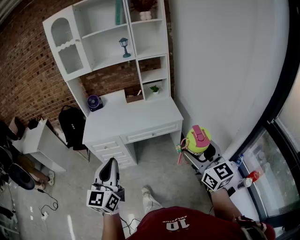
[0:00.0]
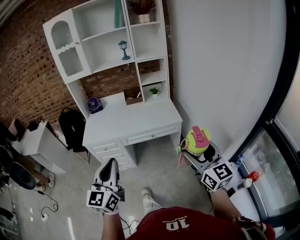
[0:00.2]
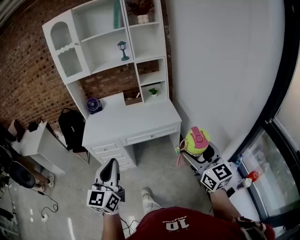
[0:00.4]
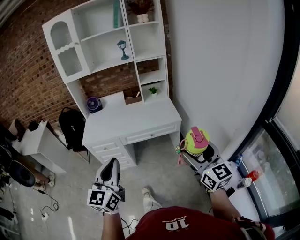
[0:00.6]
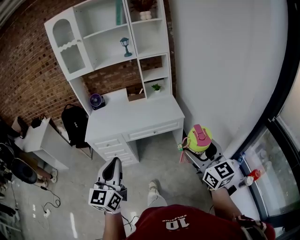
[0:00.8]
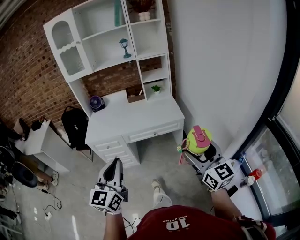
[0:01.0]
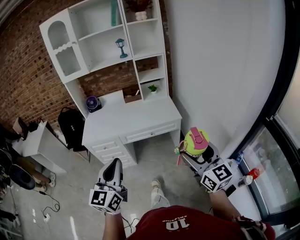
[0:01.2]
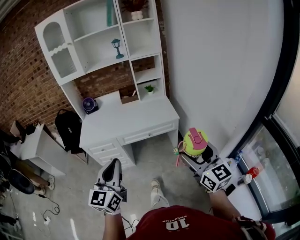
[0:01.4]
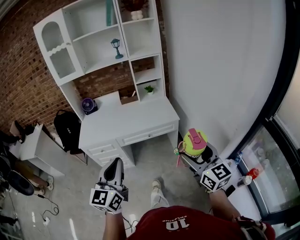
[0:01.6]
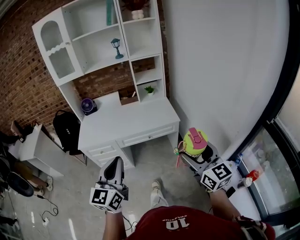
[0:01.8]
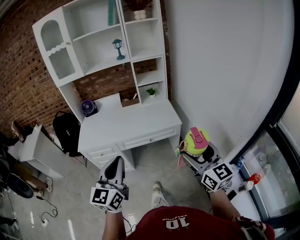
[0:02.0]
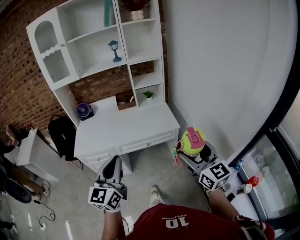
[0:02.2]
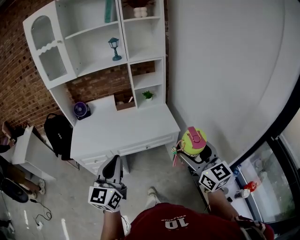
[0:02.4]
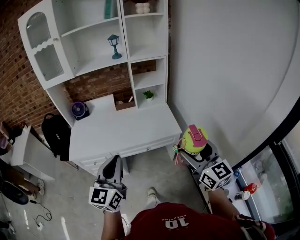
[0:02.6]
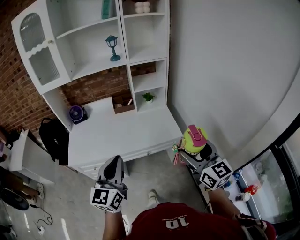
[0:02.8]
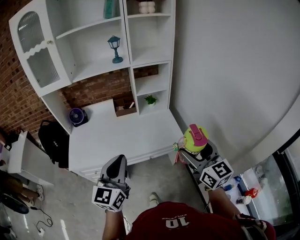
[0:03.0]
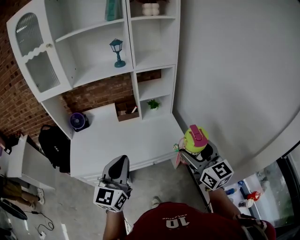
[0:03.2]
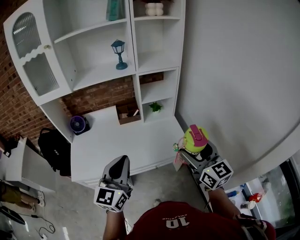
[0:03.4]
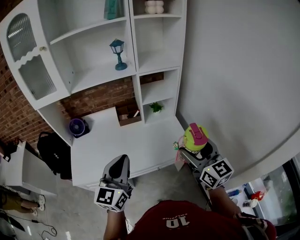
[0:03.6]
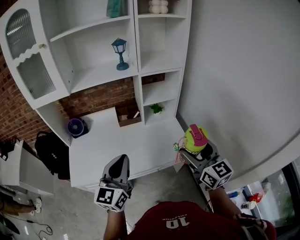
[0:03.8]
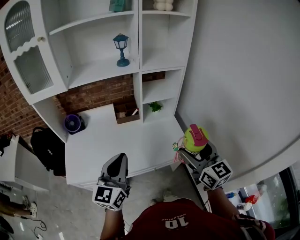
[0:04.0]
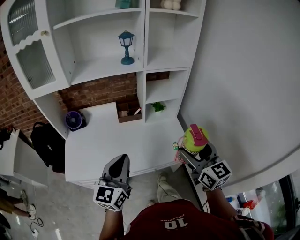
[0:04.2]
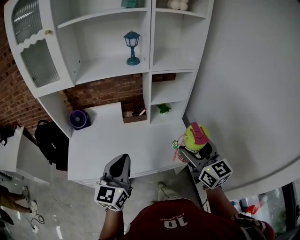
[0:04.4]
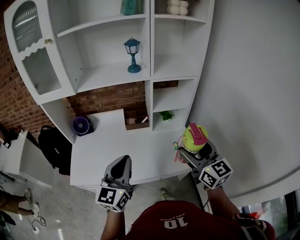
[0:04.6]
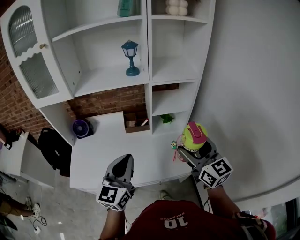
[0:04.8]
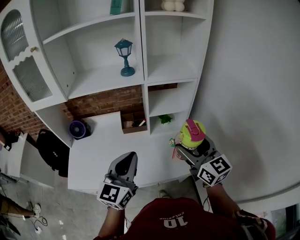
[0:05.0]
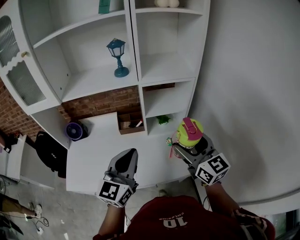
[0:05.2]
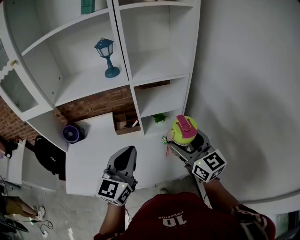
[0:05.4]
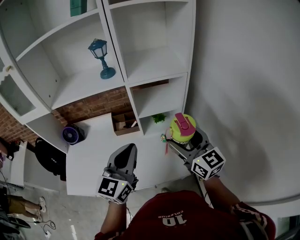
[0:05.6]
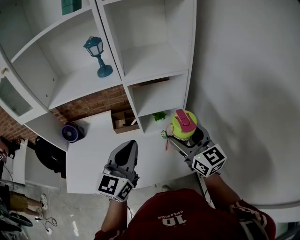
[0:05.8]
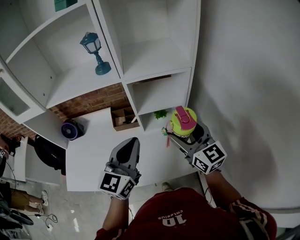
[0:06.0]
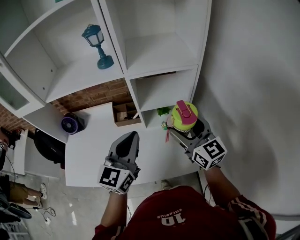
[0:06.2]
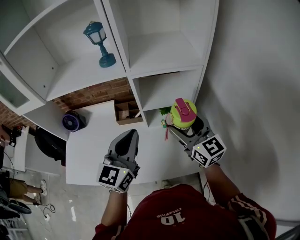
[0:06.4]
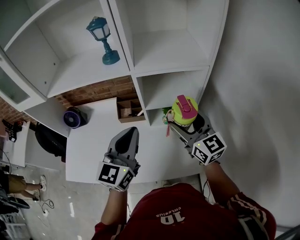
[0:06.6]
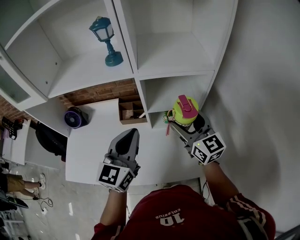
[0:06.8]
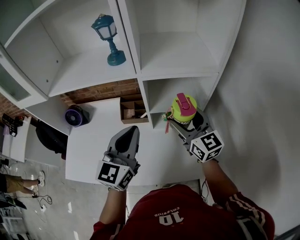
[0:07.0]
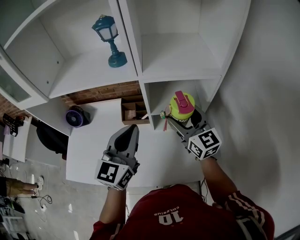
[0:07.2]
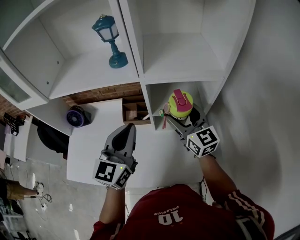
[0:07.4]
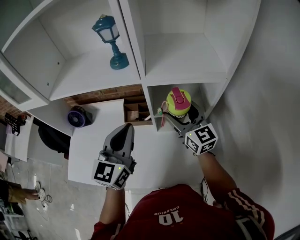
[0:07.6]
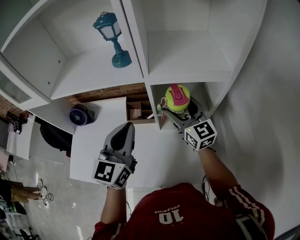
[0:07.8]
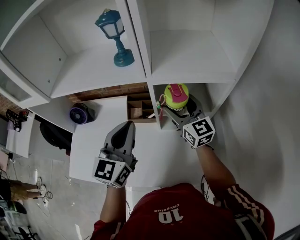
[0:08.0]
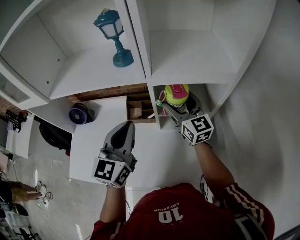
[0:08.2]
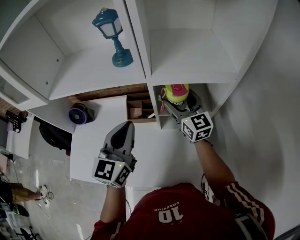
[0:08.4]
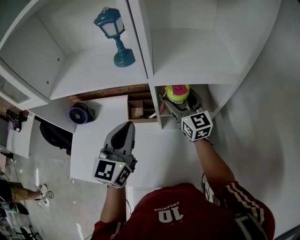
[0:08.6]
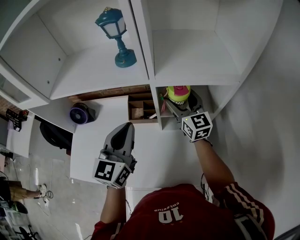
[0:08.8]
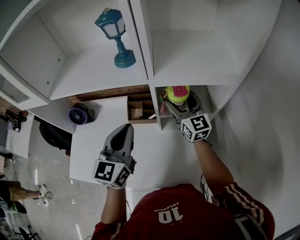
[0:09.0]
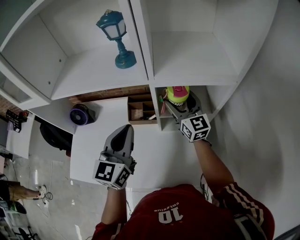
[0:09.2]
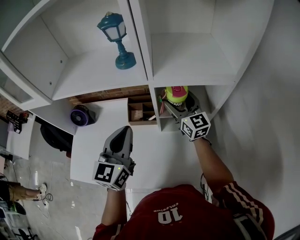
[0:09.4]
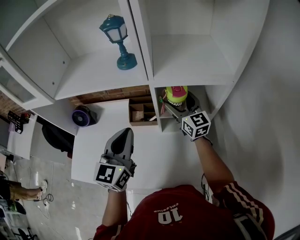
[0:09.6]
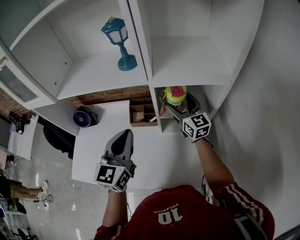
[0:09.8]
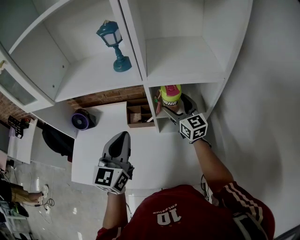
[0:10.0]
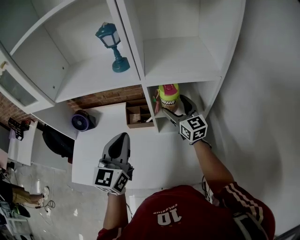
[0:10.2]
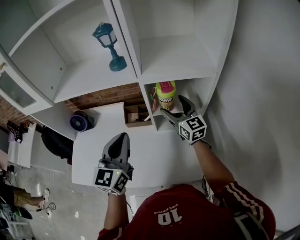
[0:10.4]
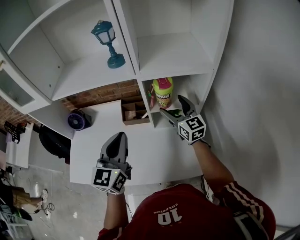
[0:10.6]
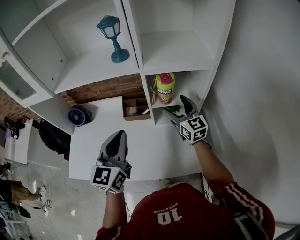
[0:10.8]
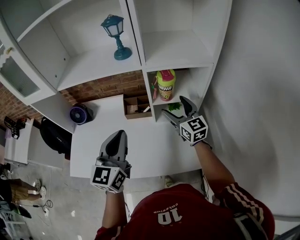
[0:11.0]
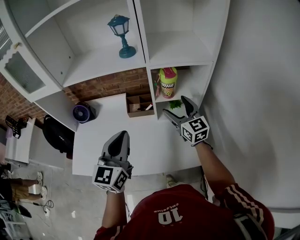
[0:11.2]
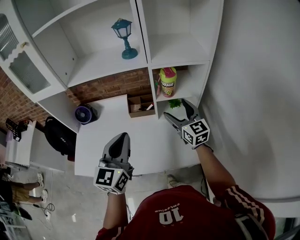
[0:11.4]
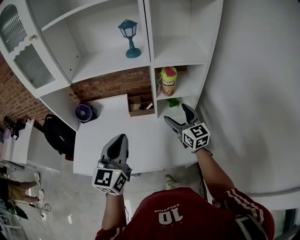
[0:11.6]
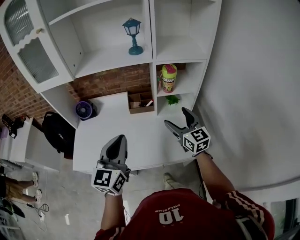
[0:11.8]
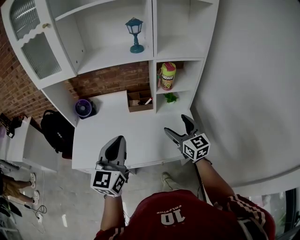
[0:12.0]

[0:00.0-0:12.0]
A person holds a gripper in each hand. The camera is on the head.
0:00.0 to 0:01.6: The left gripper ends up approximately 5 cm from where it was.
0:01.6 to 0:03.0: Both grippers travel together forward, about 30 cm.
0:03.0 to 0:04.4: The grippers both shift forward and to the left by about 20 cm.
0:04.4 to 0:06.0: The left gripper is displaced forward and to the right by approximately 25 cm. Meanwhile the right gripper travels forward by some 20 cm.
0:06.0 to 0:07.6: The right gripper is displaced forward by approximately 15 cm; the left gripper is displaced forward and to the left by some 10 cm.
0:07.6 to 0:09.0: The right gripper is displaced forward by about 5 cm.
0:09.0 to 0:10.4: The left gripper goes about 5 cm backward. Meanwhile the right gripper ends up approximately 5 cm from where it was.
0:10.4 to 0:12.0: The right gripper is displaced backward by some 30 cm. Meanwhile the left gripper moves backward and to the left, about 25 cm.

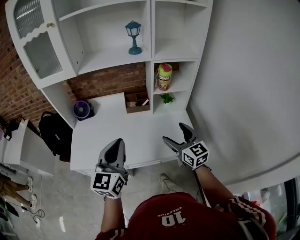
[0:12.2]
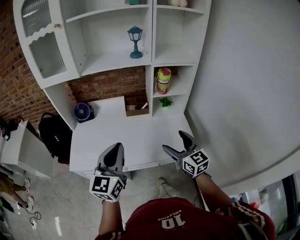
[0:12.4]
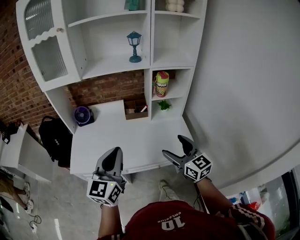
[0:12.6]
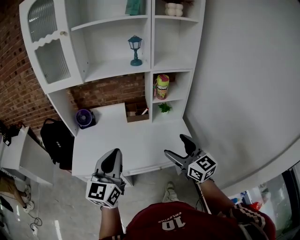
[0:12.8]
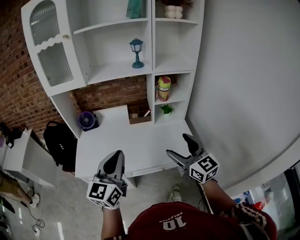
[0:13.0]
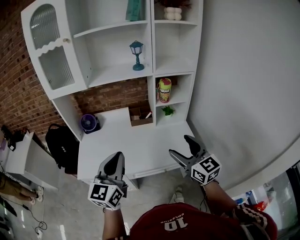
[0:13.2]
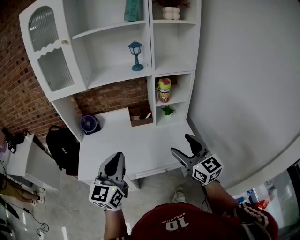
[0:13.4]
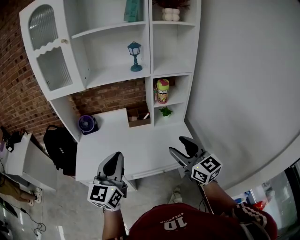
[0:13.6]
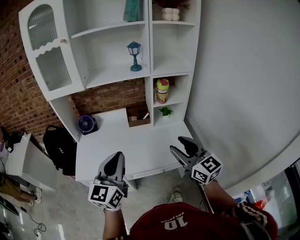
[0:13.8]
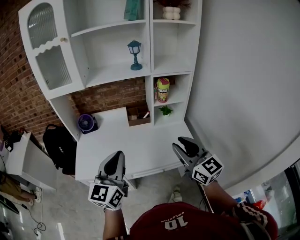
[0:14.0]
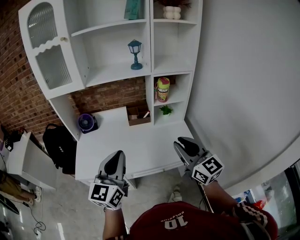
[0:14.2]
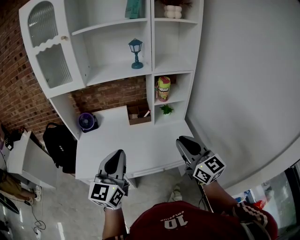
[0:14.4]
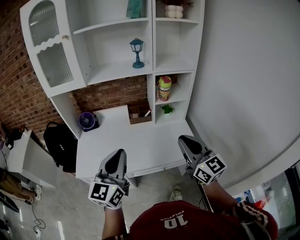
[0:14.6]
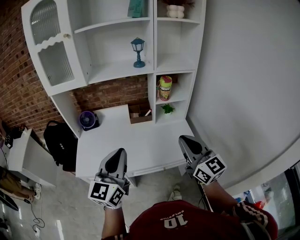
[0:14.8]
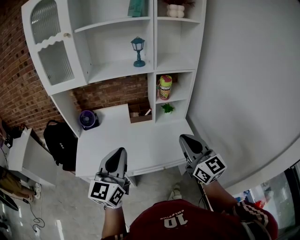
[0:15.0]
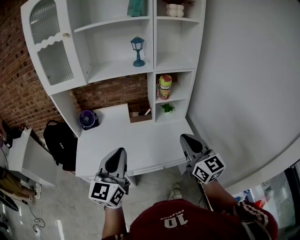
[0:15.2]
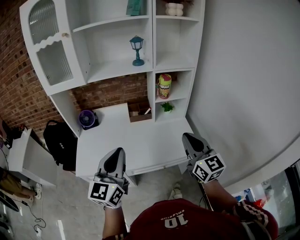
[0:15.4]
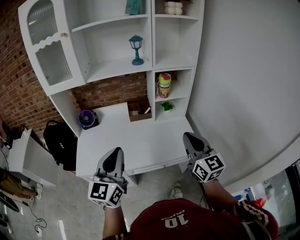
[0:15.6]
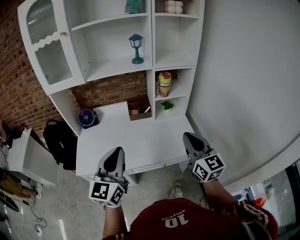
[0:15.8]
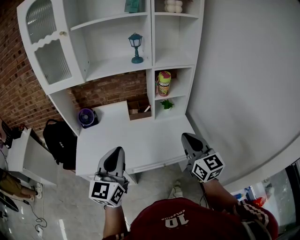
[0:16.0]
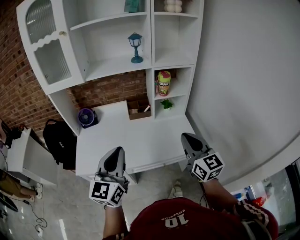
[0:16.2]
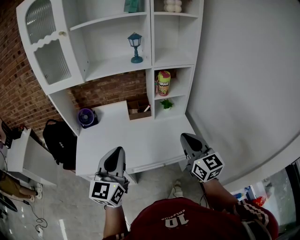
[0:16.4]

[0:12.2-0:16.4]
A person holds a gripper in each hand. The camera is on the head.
0:12.2 to 0:13.6: The right gripper moves backward and upward, approximately 15 cm, and closes its fingers; the left gripper moves backward, roughly 5 cm.
0:13.6 to 0:15.0: The right gripper closes its fingers.
0:15.0 to 0:16.4: There are only small adjustments of the grippers.

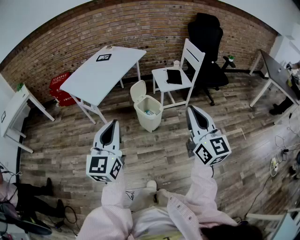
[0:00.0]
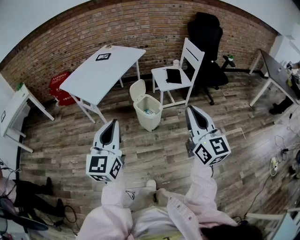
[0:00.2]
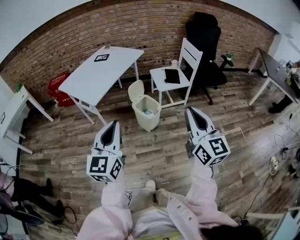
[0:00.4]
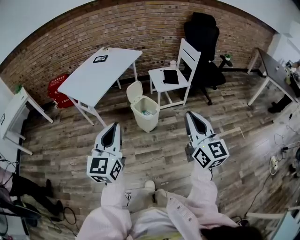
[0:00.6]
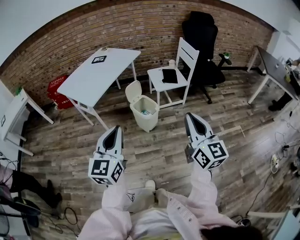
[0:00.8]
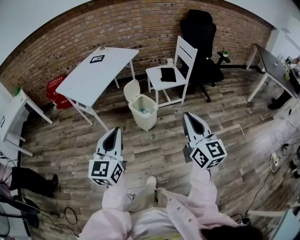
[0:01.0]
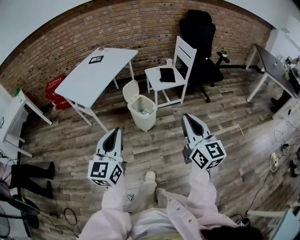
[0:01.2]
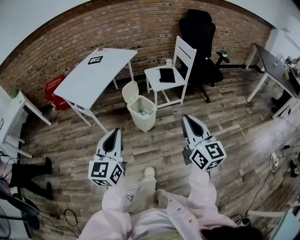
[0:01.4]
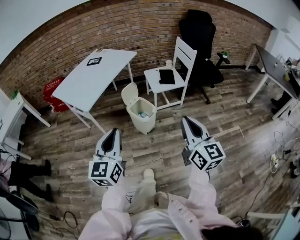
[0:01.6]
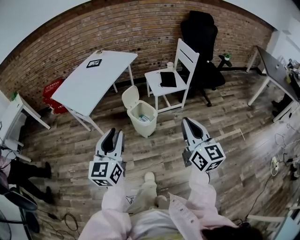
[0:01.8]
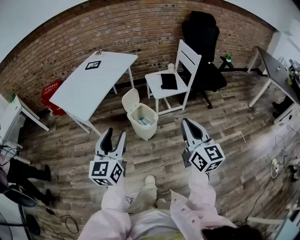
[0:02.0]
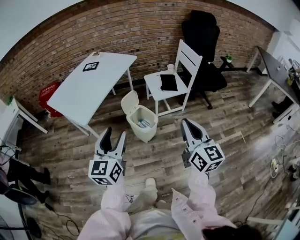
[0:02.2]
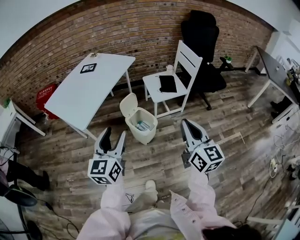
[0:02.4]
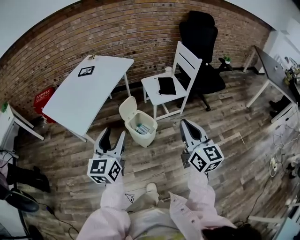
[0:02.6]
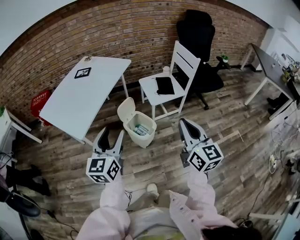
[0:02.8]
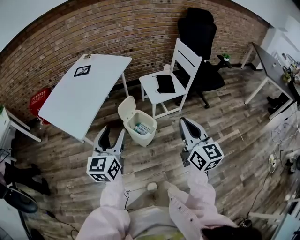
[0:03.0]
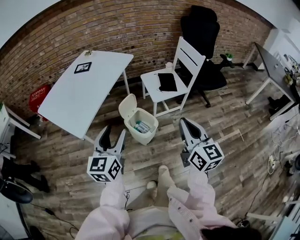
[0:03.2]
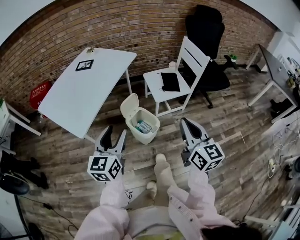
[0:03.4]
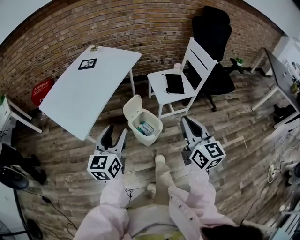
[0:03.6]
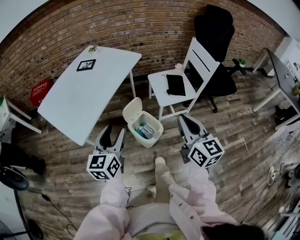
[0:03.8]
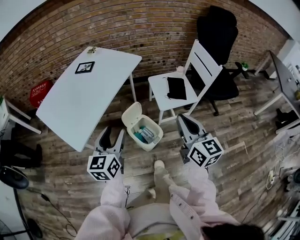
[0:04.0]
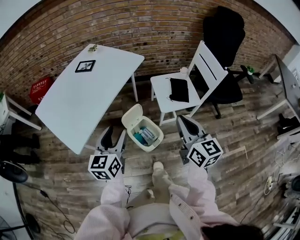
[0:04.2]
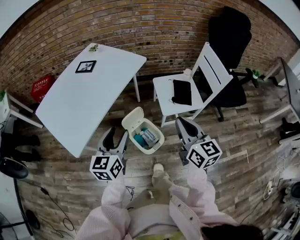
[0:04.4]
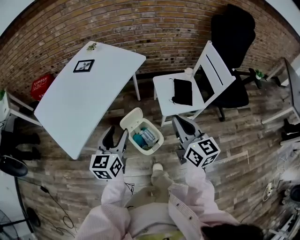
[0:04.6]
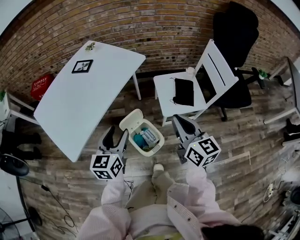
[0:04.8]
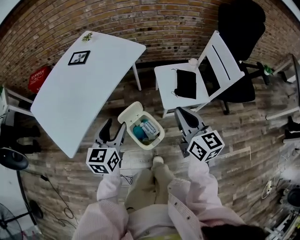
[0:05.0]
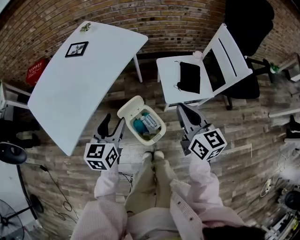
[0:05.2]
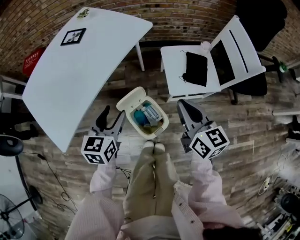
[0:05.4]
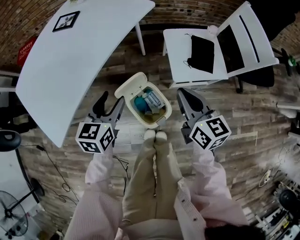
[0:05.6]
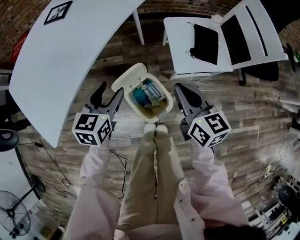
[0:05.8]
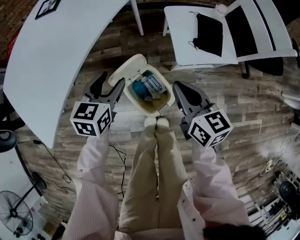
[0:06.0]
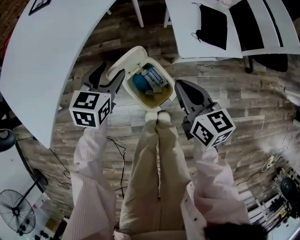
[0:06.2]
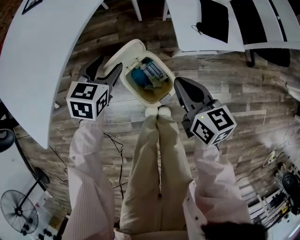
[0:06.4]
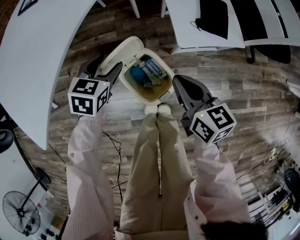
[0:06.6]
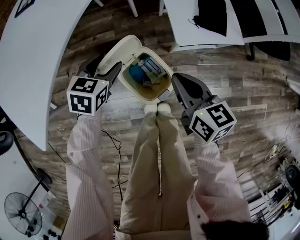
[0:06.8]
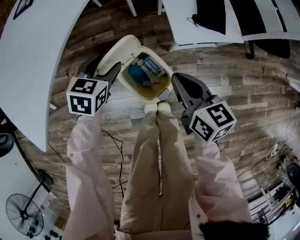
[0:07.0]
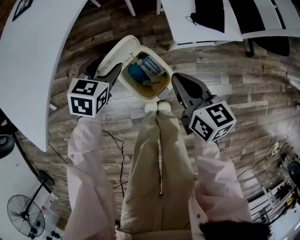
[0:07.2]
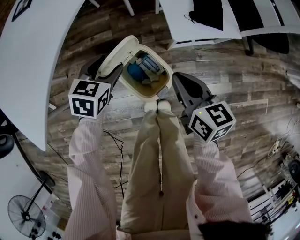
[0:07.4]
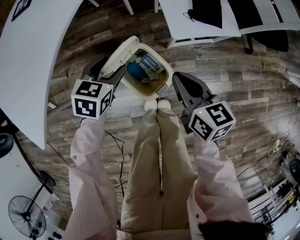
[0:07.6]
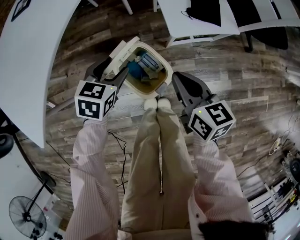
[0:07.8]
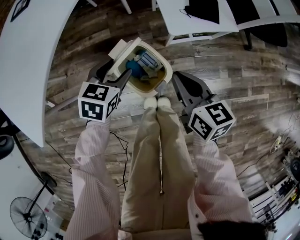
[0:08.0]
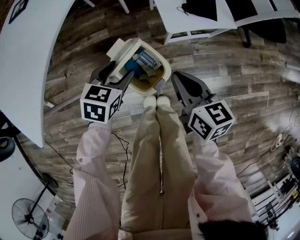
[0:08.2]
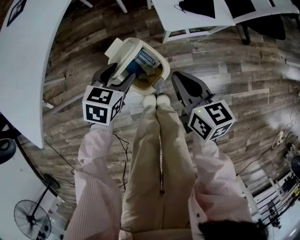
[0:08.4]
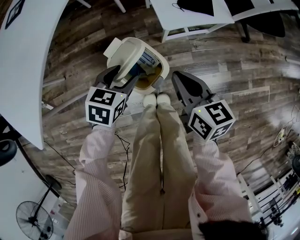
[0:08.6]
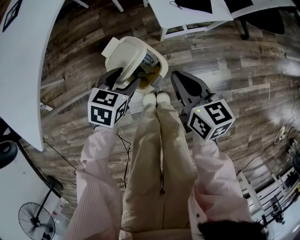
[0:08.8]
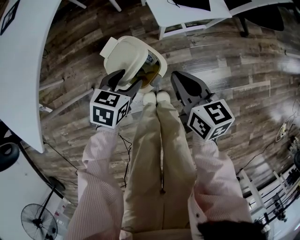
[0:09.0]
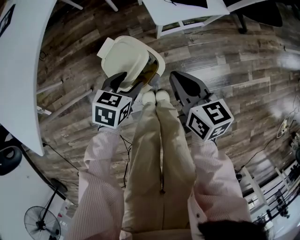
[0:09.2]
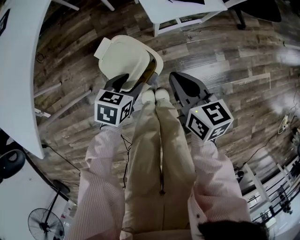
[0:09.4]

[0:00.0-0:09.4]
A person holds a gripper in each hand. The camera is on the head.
0:00.0 to 0:01.6: The right gripper is displaced downward by approximately 5 cm. The left gripper ends up some 5 cm from where it was.
0:01.6 to 0:03.2: The two grippers go approximately 25 cm forward. The left gripper opens up.
0:03.2 to 0:04.8: Both grippers move forward, some 25 cm.
0:04.8 to 0:06.2: The right gripper goes roughly 25 cm downward, and rotates about 20 degrees; the left gripper shifts some 25 cm downward and forward, and rotates approximately 30 degrees.
0:06.2 to 0:07.8: The right gripper shifts by roughly 5 cm, while the left gripper travels downward by some 5 cm.
0:07.8 to 0:09.4: The left gripper shifts about 15 cm to the right, backward and downward. Meanwhile the right gripper shifts by approximately 5 cm.
